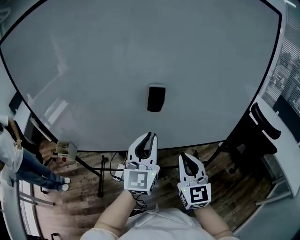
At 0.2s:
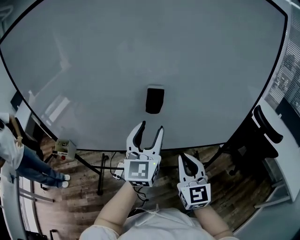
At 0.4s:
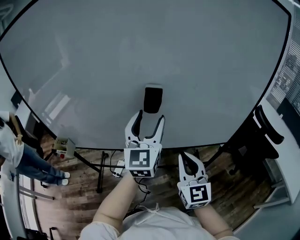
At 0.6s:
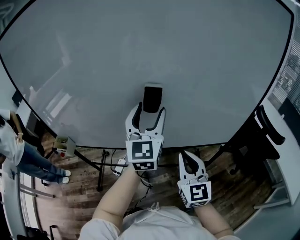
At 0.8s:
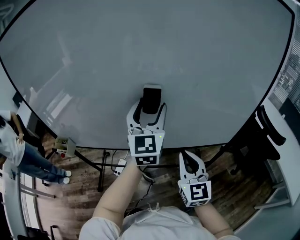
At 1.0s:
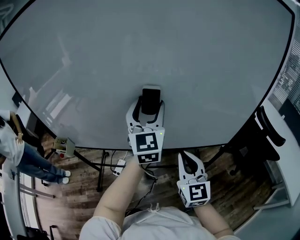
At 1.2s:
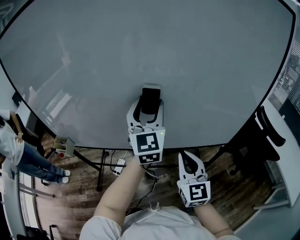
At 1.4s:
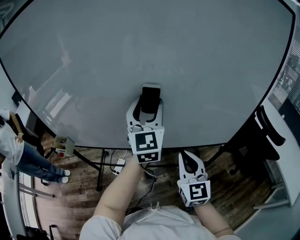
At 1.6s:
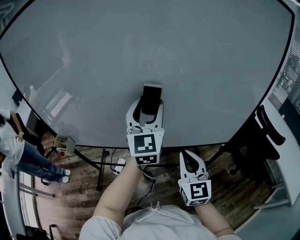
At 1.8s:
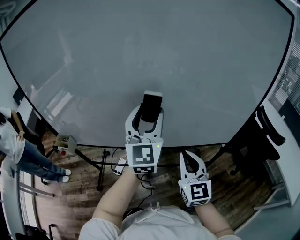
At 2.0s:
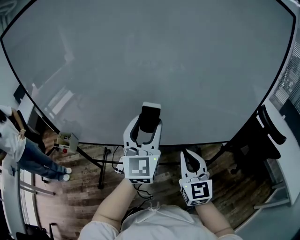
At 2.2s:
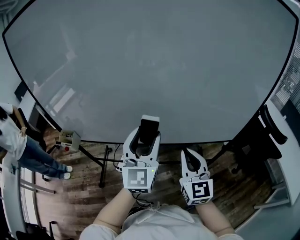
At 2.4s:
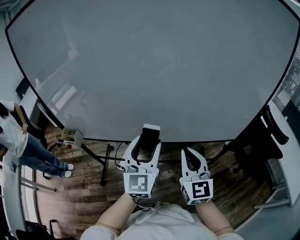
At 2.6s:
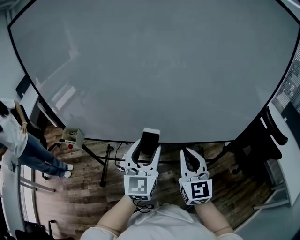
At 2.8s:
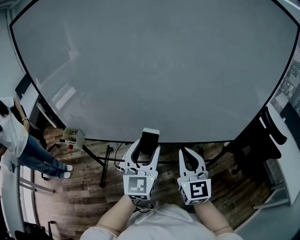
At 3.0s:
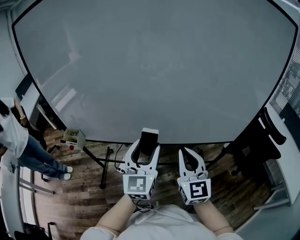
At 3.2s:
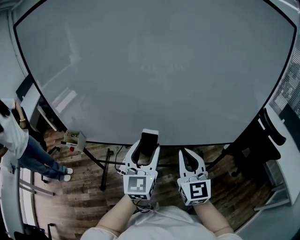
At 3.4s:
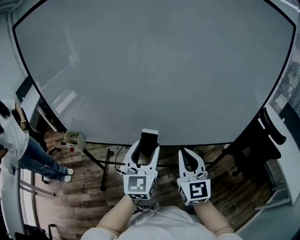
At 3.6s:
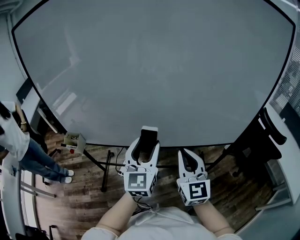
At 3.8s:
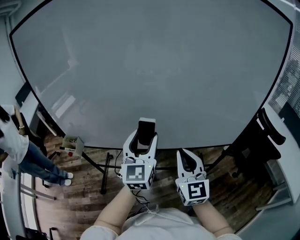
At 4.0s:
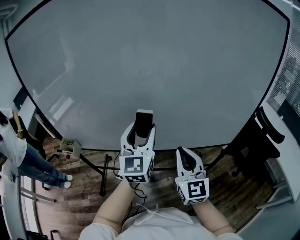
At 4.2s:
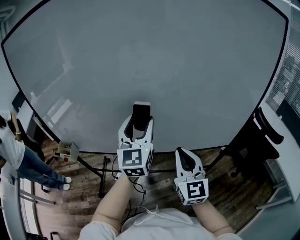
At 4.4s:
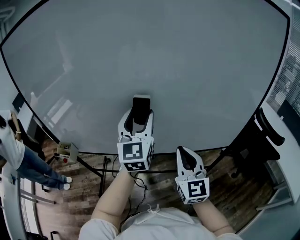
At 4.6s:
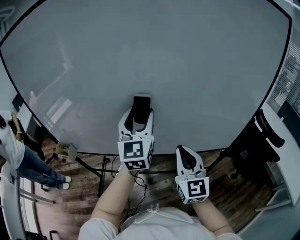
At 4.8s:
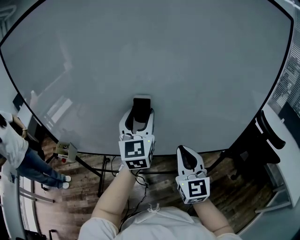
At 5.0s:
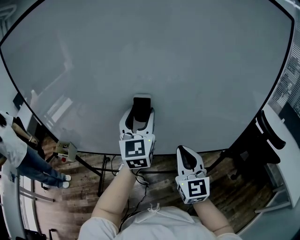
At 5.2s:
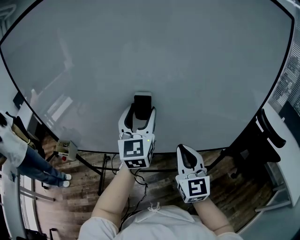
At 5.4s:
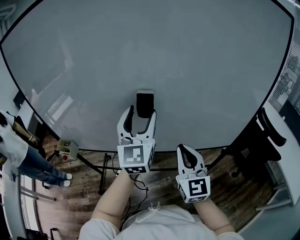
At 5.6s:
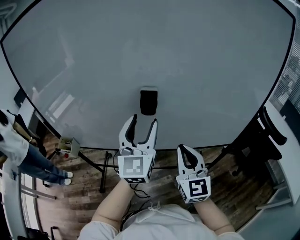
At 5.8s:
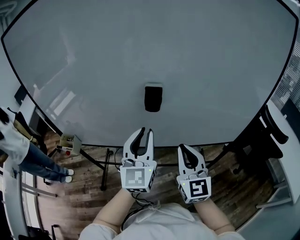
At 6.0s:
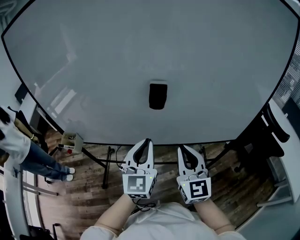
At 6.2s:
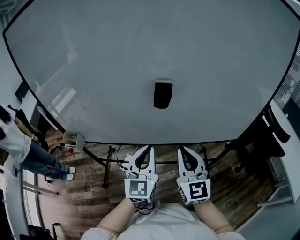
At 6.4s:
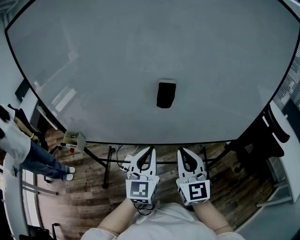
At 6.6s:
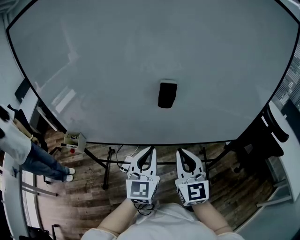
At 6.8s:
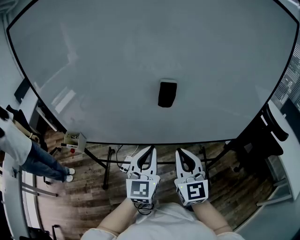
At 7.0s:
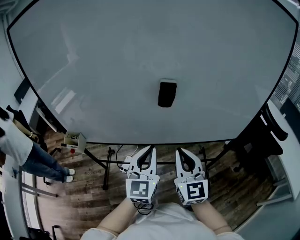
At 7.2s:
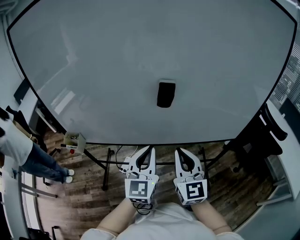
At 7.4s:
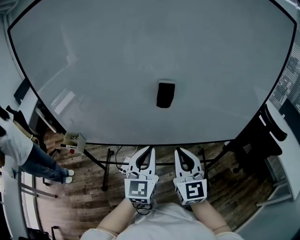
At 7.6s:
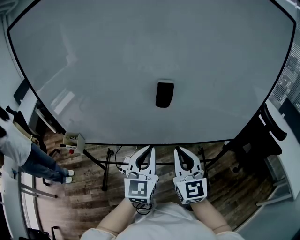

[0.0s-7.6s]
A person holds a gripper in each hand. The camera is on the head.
0.0s to 1.6s: The left gripper is displaced forward and upward by approximately 10 cm, and opens up.
1.6s to 3.0s: The right gripper heads to the left, covering about 10 cm. The left gripper goes roughly 20 cm backward, downward and to the left.
3.0s to 4.6s: The right gripper goes some 10 cm to the right and forward. The left gripper is displaced forward and upward by some 15 cm.
4.6s to 6.0s: The left gripper heads backward and downward, covering some 15 cm, and closes; the right gripper changes place by about 5 cm.
6.0s to 7.6s: The grippers stay close to where they were, moving slightly.

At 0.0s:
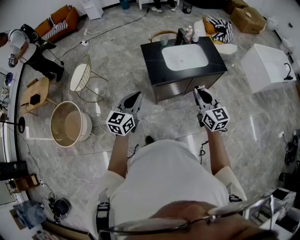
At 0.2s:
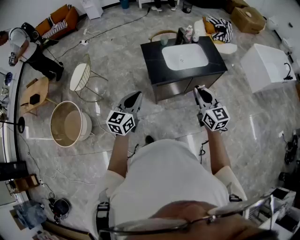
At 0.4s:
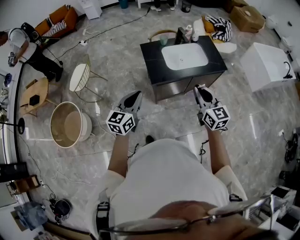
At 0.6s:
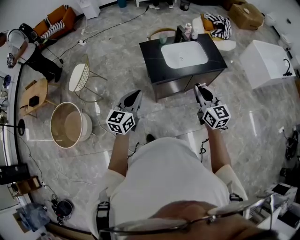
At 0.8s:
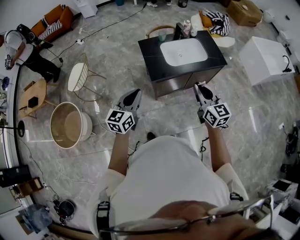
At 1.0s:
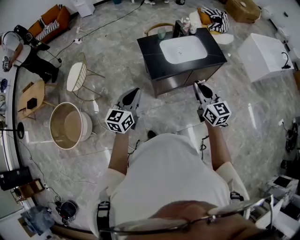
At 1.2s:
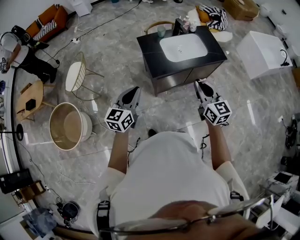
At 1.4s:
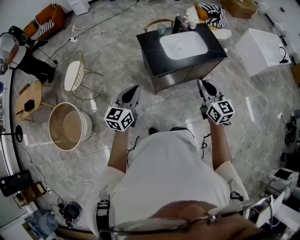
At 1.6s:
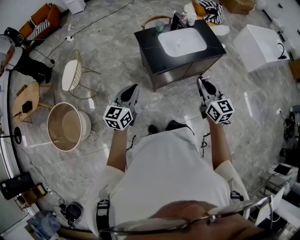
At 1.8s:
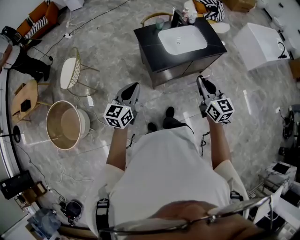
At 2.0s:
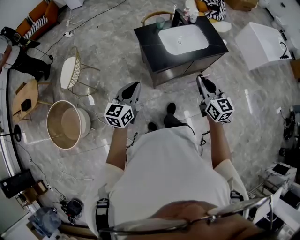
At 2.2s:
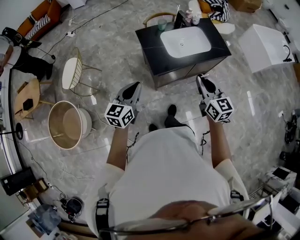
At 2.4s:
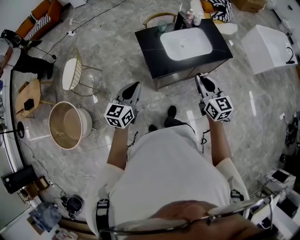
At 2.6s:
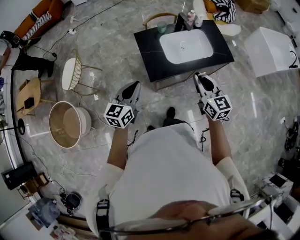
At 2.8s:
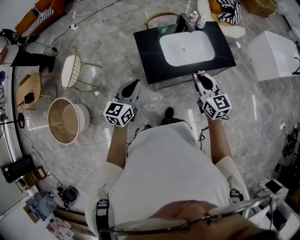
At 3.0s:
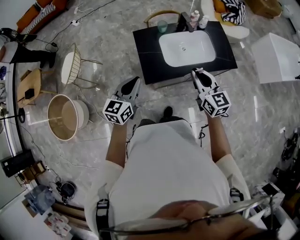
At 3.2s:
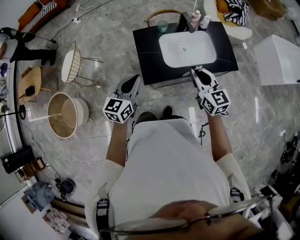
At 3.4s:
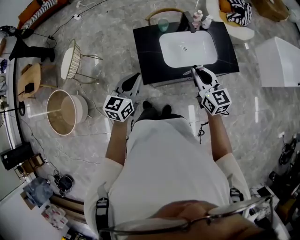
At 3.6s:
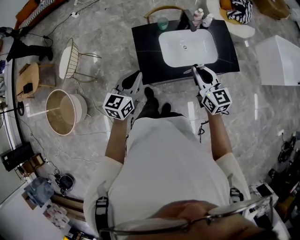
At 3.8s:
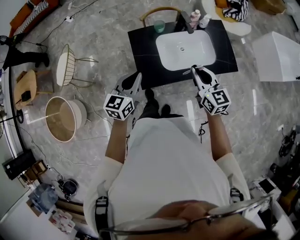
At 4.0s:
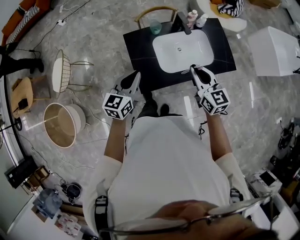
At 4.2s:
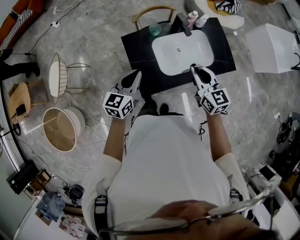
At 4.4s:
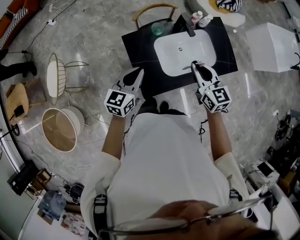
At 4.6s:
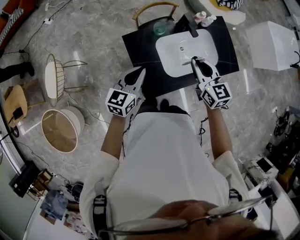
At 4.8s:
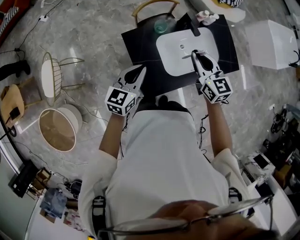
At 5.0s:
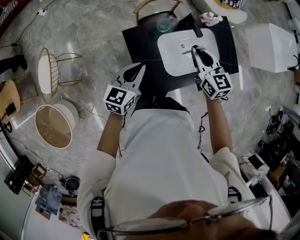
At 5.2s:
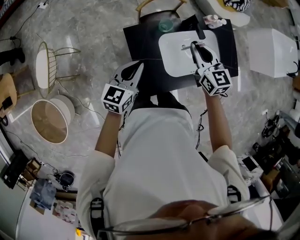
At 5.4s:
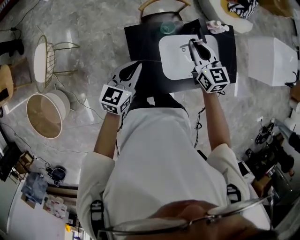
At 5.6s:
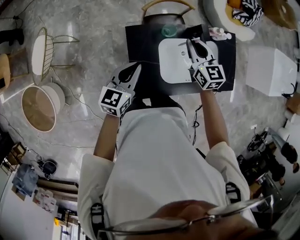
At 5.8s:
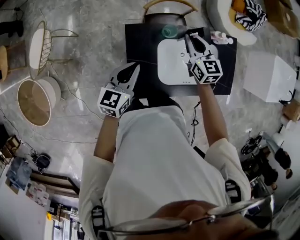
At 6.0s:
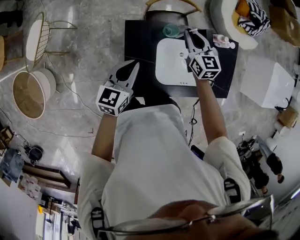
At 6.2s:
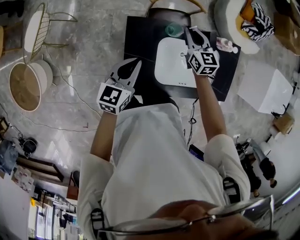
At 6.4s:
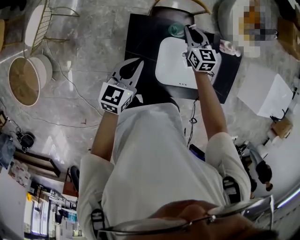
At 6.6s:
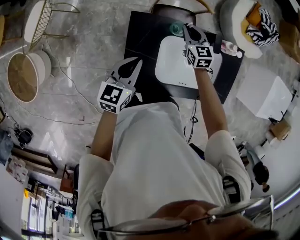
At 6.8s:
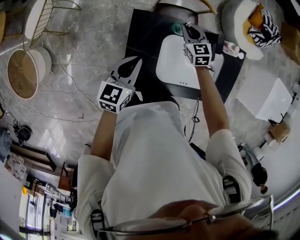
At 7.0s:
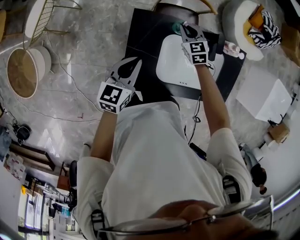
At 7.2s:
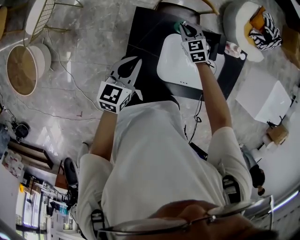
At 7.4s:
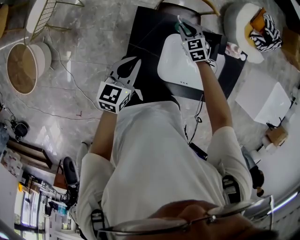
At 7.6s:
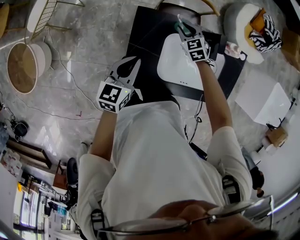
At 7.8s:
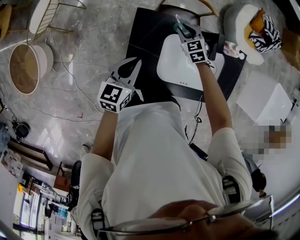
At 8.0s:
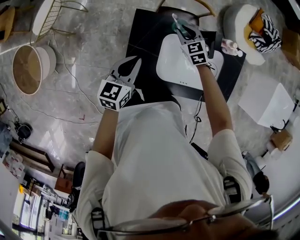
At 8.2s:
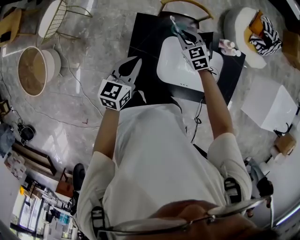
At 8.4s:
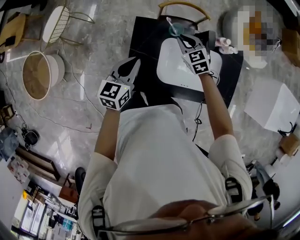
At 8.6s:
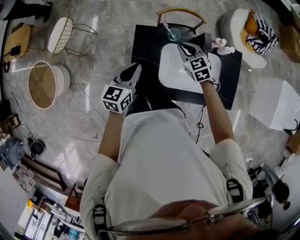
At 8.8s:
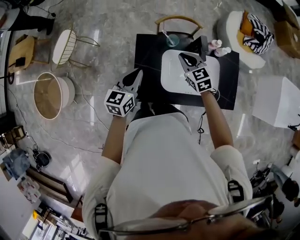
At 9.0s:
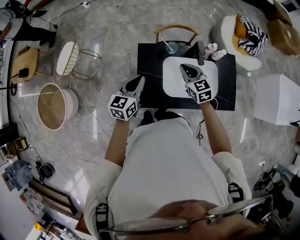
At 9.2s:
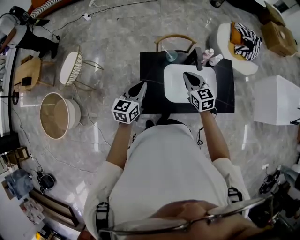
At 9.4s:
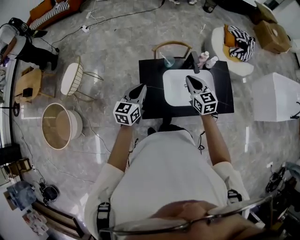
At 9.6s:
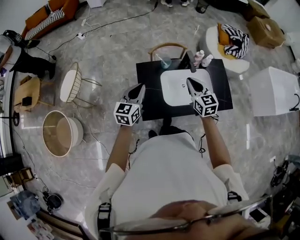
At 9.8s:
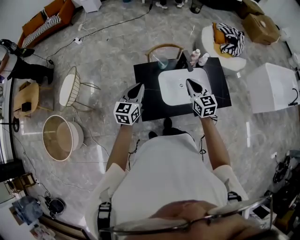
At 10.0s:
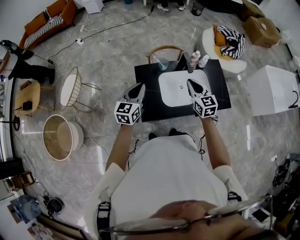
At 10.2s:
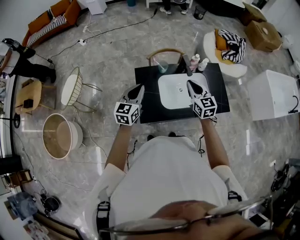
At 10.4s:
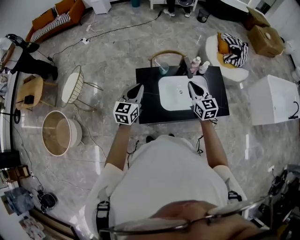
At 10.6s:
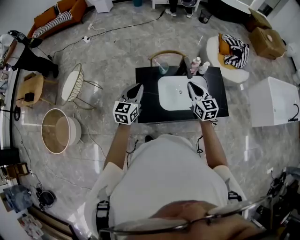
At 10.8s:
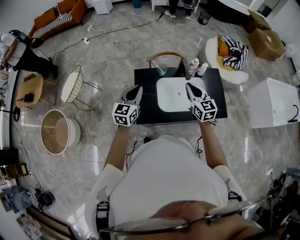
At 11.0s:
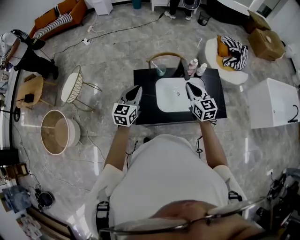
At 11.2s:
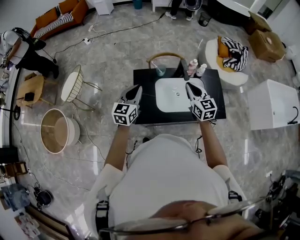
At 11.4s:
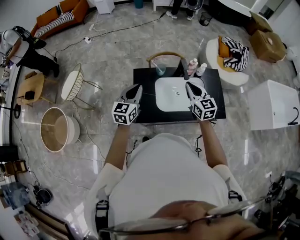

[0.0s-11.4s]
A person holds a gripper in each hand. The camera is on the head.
0.0s to 1.4s: The left gripper is displaced to the left by about 5 cm.
1.4s to 2.8s: The right gripper is displaced forward by approximately 20 cm. Meanwhile the left gripper is displaced forward and to the right by about 20 cm.
2.8s to 4.2s: The grippers both shift forward by some 20 cm.
4.2s to 5.6s: The right gripper shifts about 25 cm forward and to the left, while the left gripper is displaced forward by some 10 cm.
5.6s to 7.2s: The right gripper shifts about 20 cm downward, and turns by about 40 degrees, while the left gripper moves downward, about 5 cm.
7.2s to 8.6s: The right gripper heads upward and backward, covering approximately 15 cm. The left gripper heads upward, covering about 5 cm.
8.6s to 10.0s: The right gripper moves backward and upward, about 20 cm, and rotates some 40 degrees, while the left gripper moves upward, some 10 cm.
10.0s to 11.4s: There are only small adjustments of the grippers.

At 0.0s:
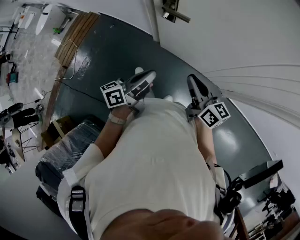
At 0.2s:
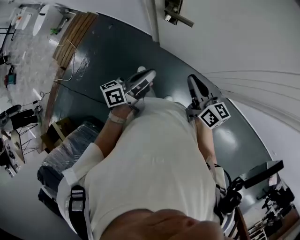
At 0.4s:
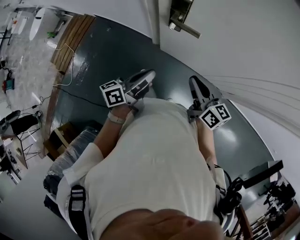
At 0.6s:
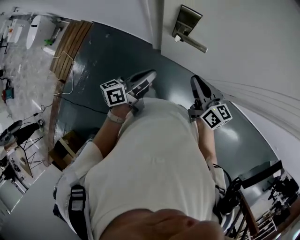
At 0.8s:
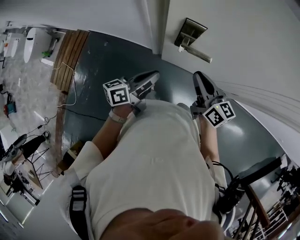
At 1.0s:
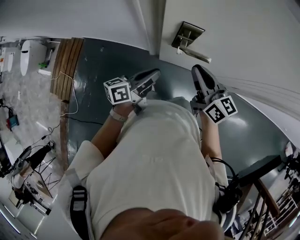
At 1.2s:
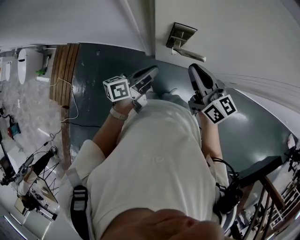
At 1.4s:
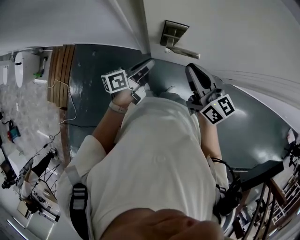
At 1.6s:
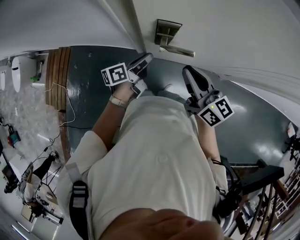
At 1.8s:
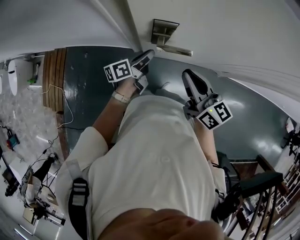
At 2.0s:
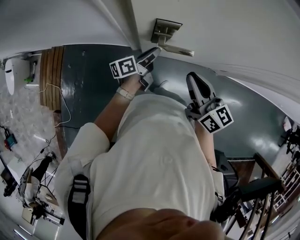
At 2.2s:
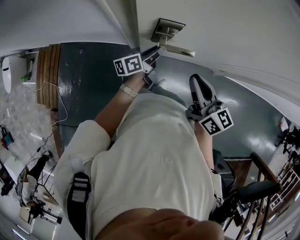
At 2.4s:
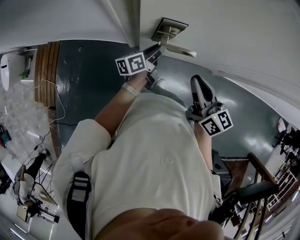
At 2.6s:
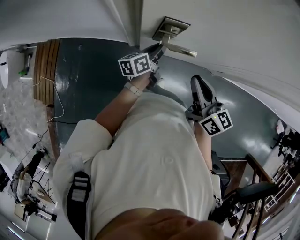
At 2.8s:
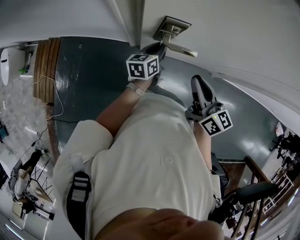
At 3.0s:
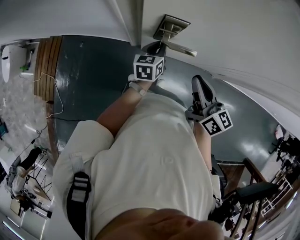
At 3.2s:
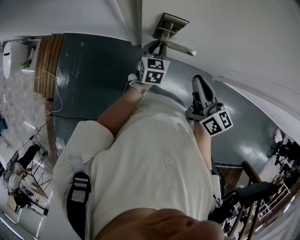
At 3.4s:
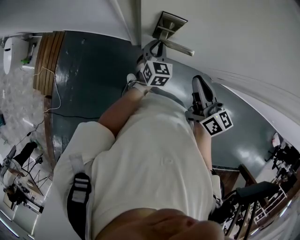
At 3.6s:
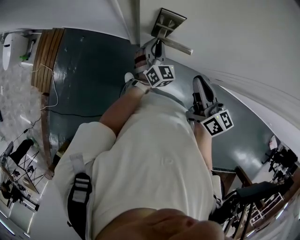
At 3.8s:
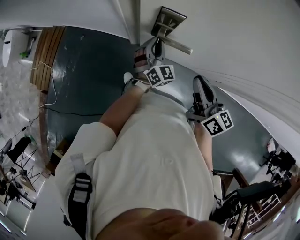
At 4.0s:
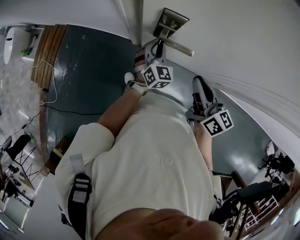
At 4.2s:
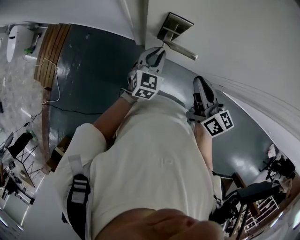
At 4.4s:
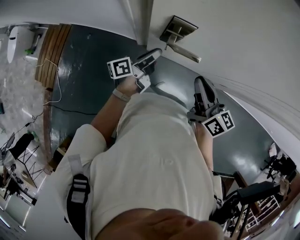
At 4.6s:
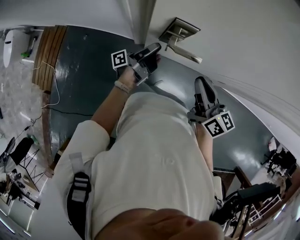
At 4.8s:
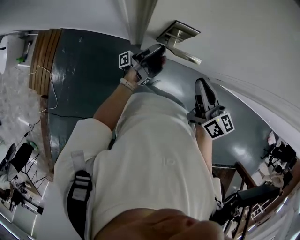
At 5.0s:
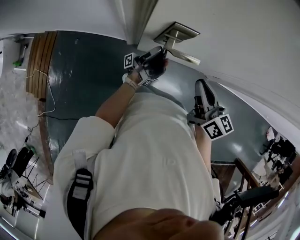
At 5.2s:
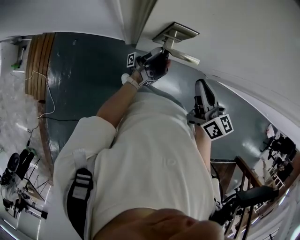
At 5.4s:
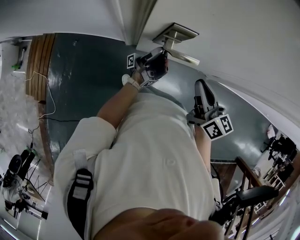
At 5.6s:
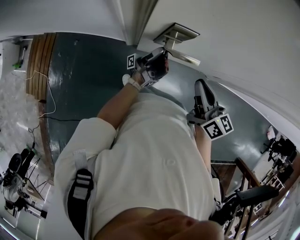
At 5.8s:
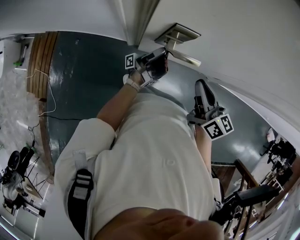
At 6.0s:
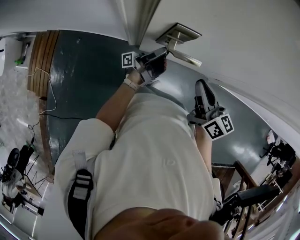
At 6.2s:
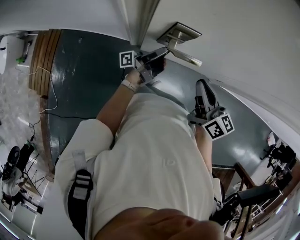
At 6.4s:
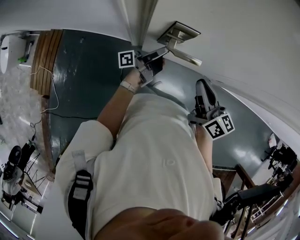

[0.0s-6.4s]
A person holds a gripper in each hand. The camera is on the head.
0.0s to 1.6s: Both grippers travel together forward and to the left, approximately 25 cm. The left gripper rotates some 20 degrees.
1.6s to 3.2s: The left gripper is displaced downward and forward by roughly 5 cm, and rotates about 60 degrees. The right gripper heads to the right, covering some 5 cm.
3.2s to 4.8s: The left gripper tips its fingers upward by about 60 degrees.
4.8s to 6.4s: The left gripper turns by approximately 30 degrees.
